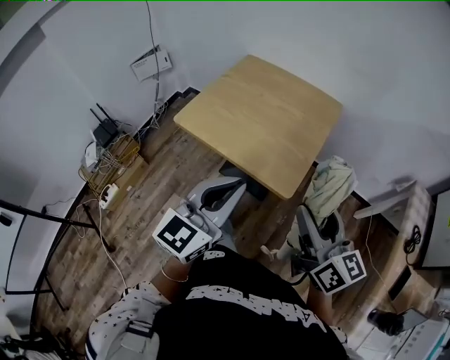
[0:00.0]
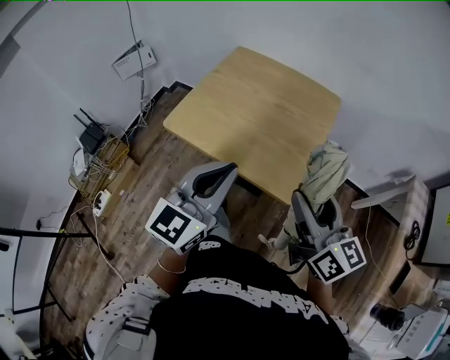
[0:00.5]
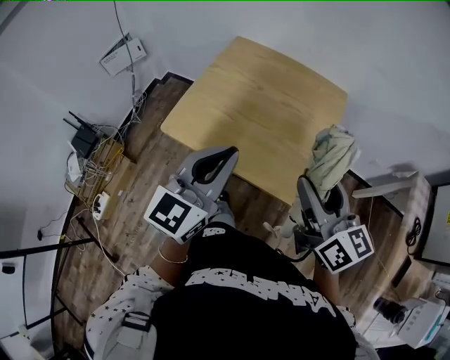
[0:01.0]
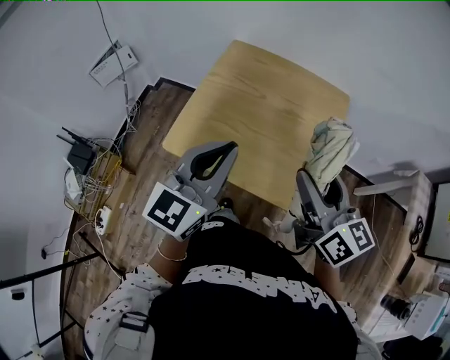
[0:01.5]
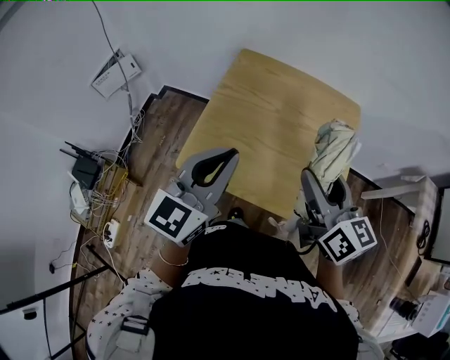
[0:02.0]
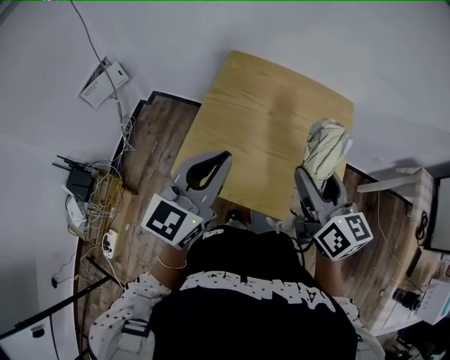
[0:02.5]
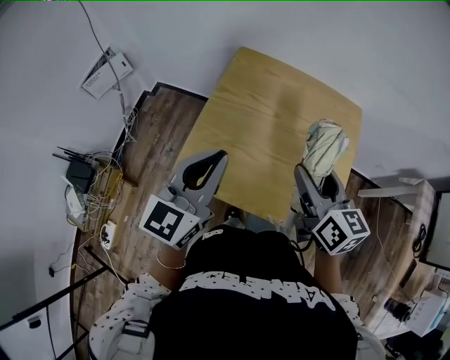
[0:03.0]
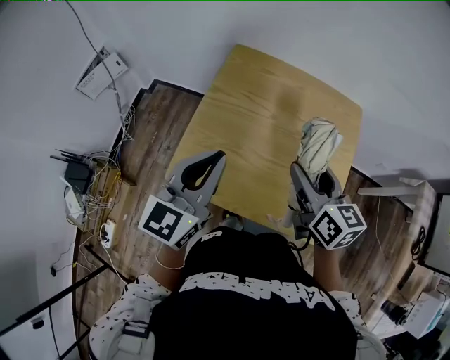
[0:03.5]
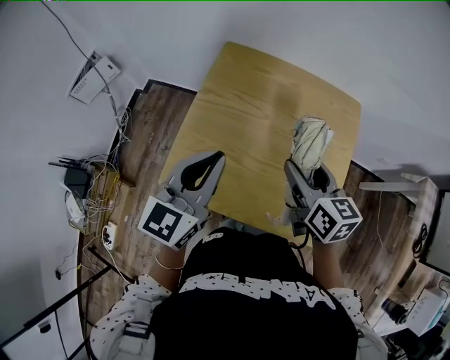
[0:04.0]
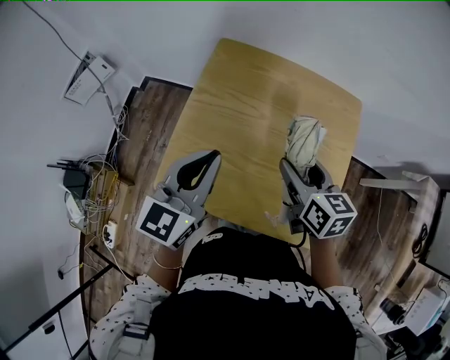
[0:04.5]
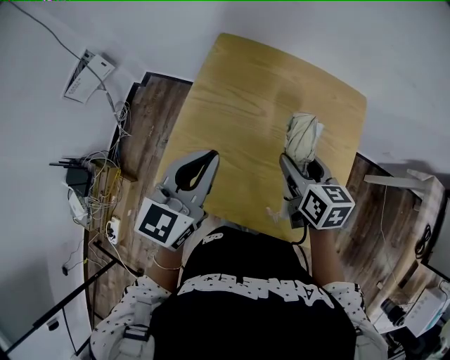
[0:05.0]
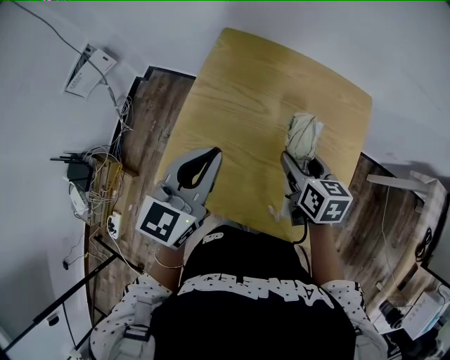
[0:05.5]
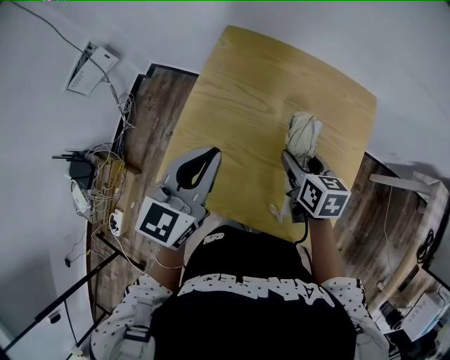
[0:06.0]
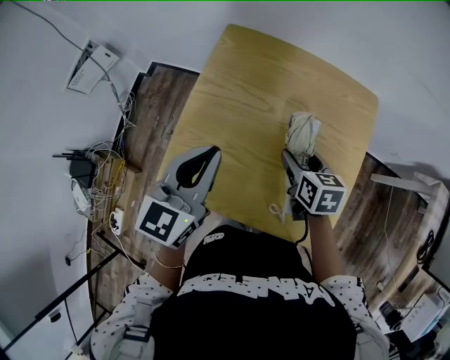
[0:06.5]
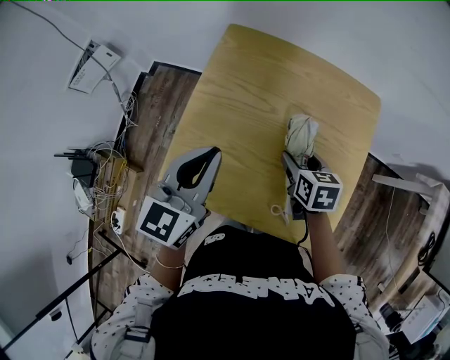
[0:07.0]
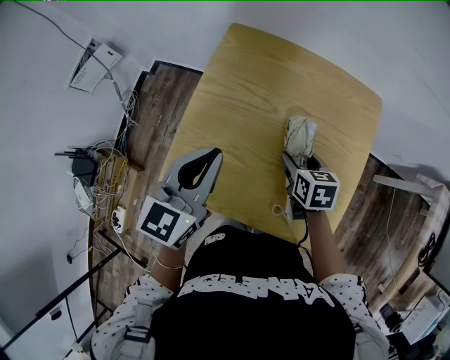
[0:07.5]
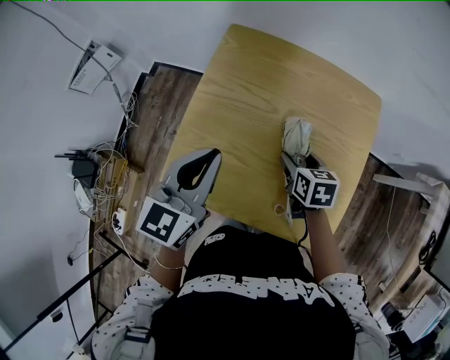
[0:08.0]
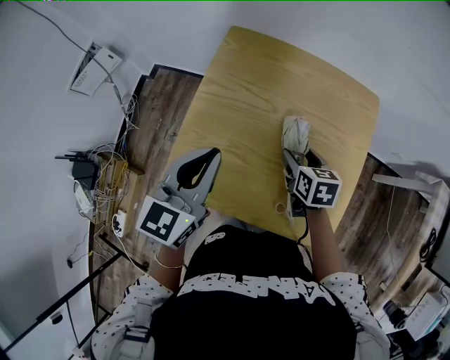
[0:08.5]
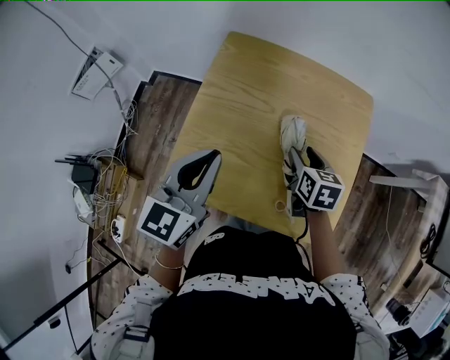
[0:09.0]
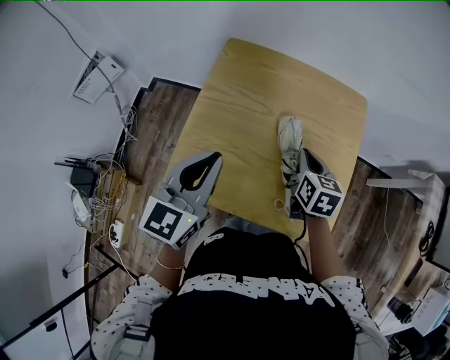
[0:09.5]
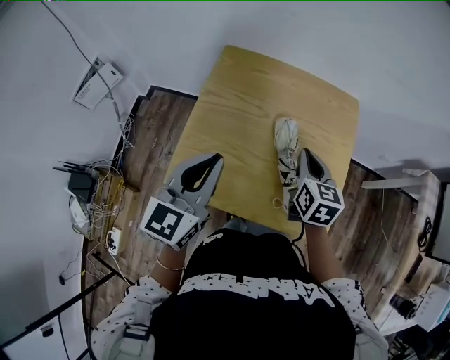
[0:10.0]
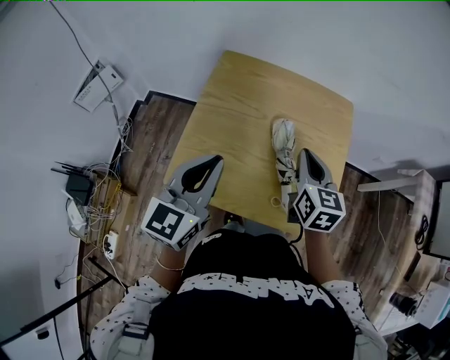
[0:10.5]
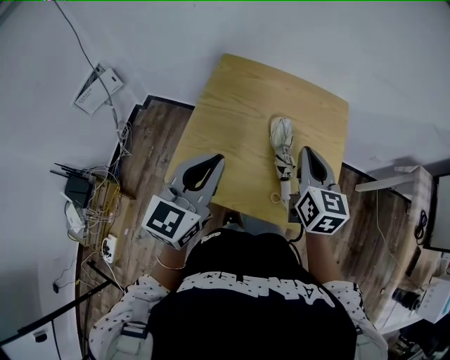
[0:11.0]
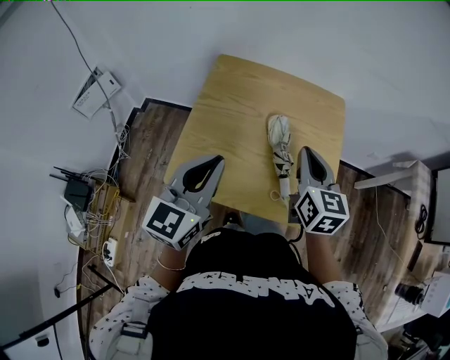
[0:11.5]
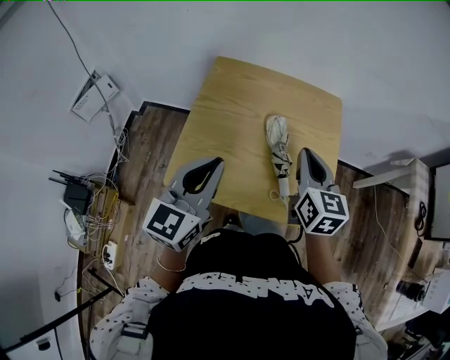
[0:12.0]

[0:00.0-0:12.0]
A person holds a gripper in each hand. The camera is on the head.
0:00.0 to 0:02.0: Both grippers travel together forward and to the left, approximately 30 cm.
0:02.0 to 0:04.0: The left gripper shifts about 10 cm forward. Meanwhile the right gripper shifts approximately 15 cm forward and downward.
0:04.0 to 0:06.0: The right gripper travels downward by roughly 10 cm.
0:06.0 to 0:08.0: The right gripper goes approximately 5 cm downward.
0:08.0 to 0:10.0: The left gripper ends up about 5 cm from where it was; the right gripper goes roughly 10 cm upward, swivels approximately 30 degrees, and closes.
0:10.0 to 0:12.0: The right gripper moves upward and backward, some 10 cm.

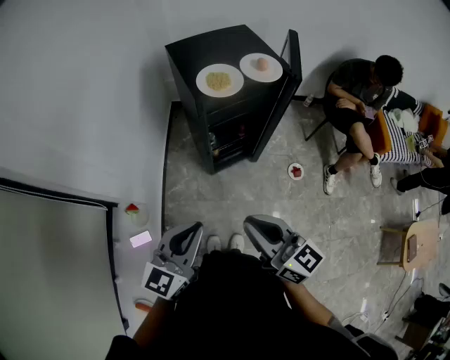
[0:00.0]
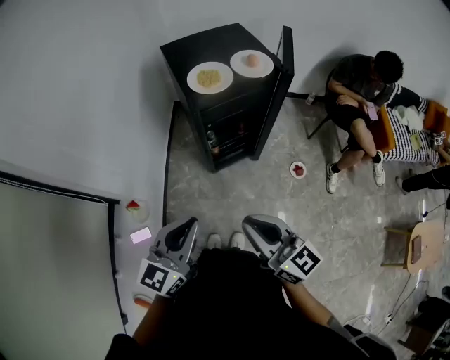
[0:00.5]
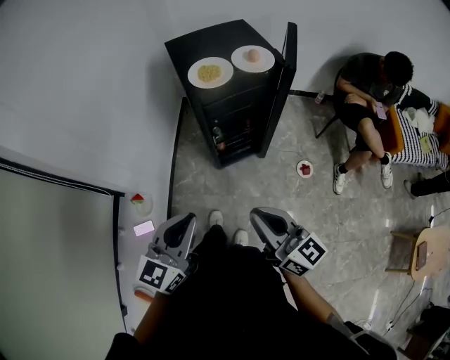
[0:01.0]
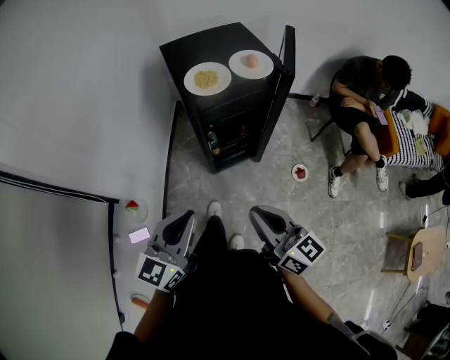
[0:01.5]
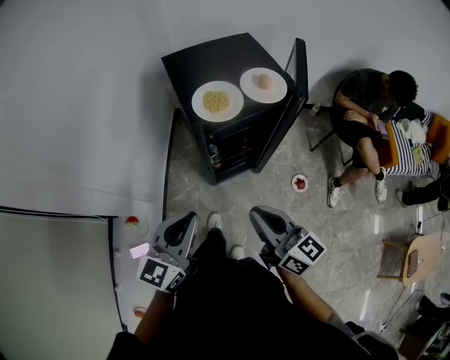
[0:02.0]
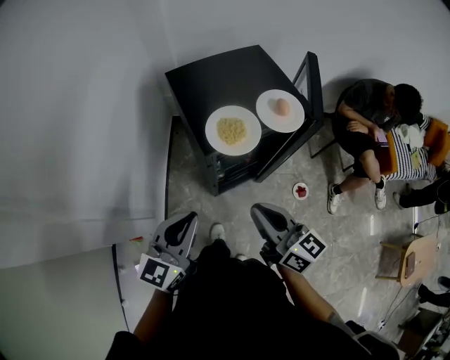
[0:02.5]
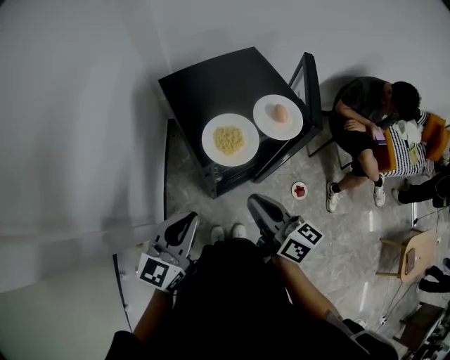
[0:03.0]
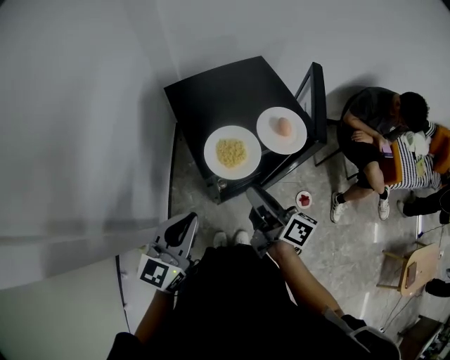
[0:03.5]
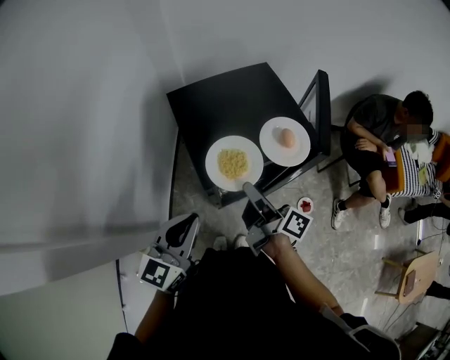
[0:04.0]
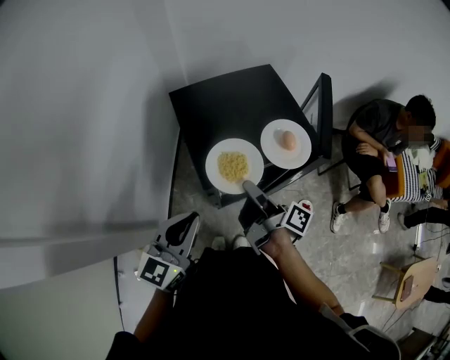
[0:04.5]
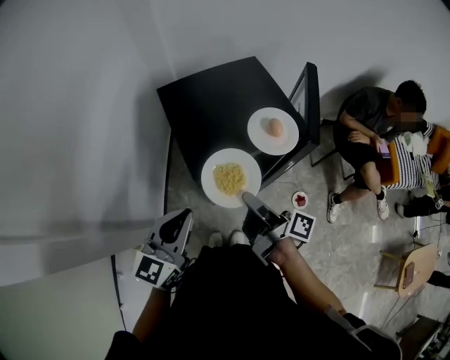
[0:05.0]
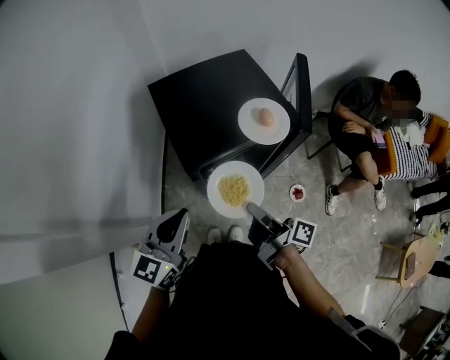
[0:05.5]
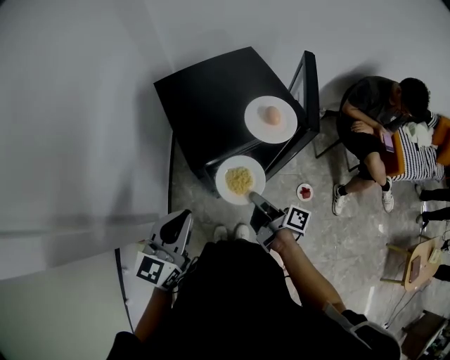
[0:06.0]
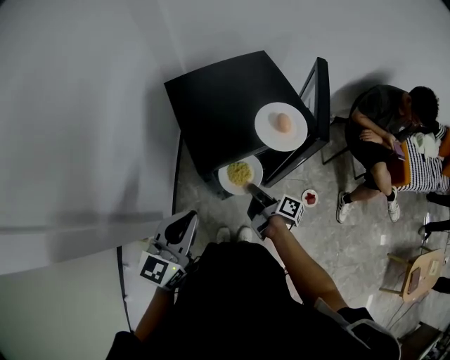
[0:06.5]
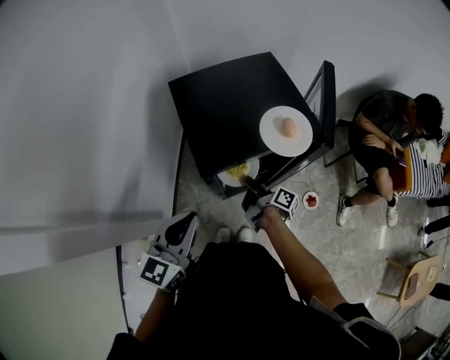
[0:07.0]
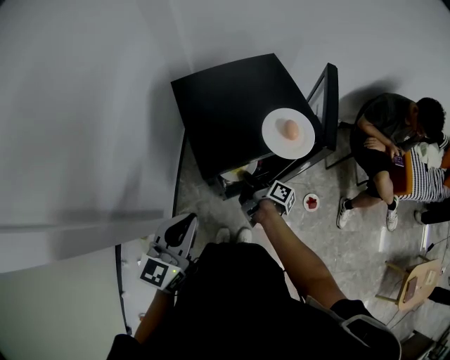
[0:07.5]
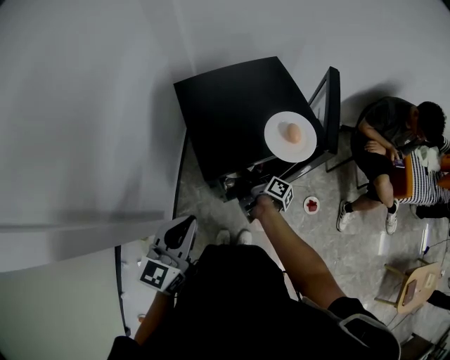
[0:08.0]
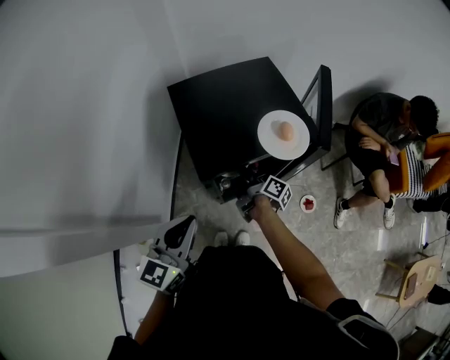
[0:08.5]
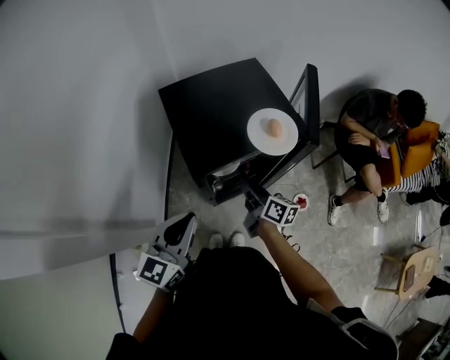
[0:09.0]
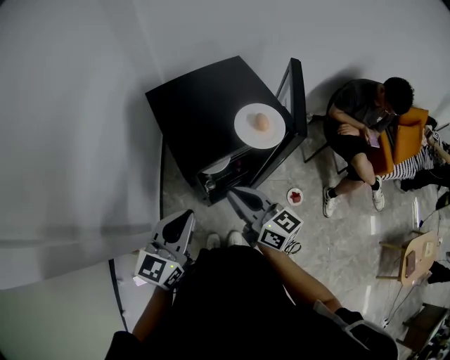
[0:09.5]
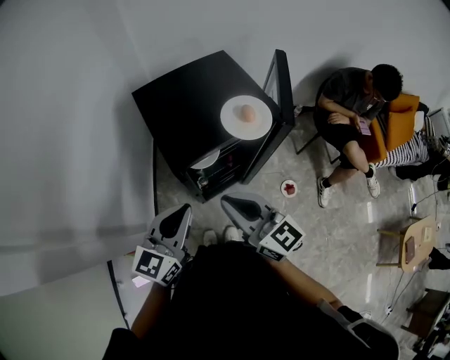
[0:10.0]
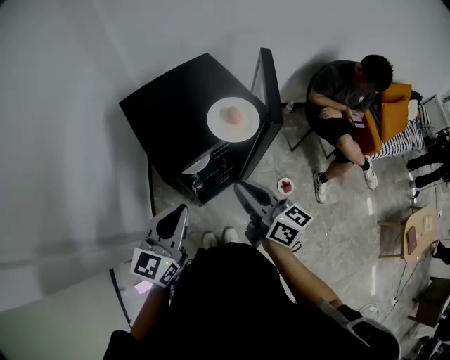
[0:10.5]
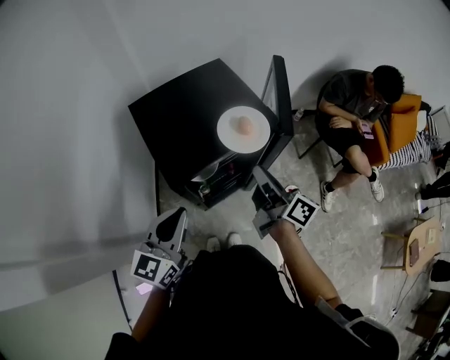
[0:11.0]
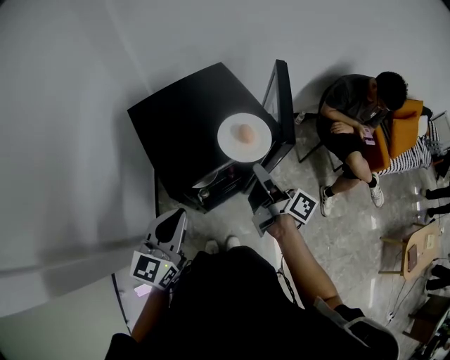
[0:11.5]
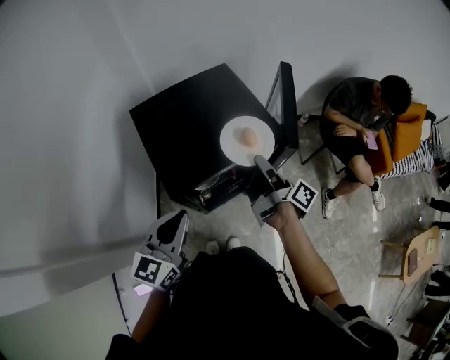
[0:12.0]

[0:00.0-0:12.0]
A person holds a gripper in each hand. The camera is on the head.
0:00.0 to 0:02.0: The left gripper is displaced forward by roughly 10 cm; the right gripper travels forward and to the right by approximately 15 cm.
0:02.0 to 0:04.0: The grippers both shift forward by approximately 25 cm. The right gripper rolls clockwise, seen from behind, by approximately 50 degrees, and opens up.
0:04.0 to 0:06.0: The right gripper is displaced downward, backward and to the right by about 15 cm.
0:06.0 to 0:08.0: The right gripper heads forward, downward and to the left, covering about 15 cm.
0:08.0 to 0:10.0: The right gripper shifts some 30 cm upward and backward, rotates around the line of its fingers by some 80 degrees, counterclockwise from behind, and opens and closes again.
0:10.0 to 0:12.0: The left gripper is displaced forward by approximately 5 cm. Meanwhile the right gripper travels forward, to the right and downward by some 25 cm, and rotates around the line of its fingers by some 70 degrees, clockwise from behind.

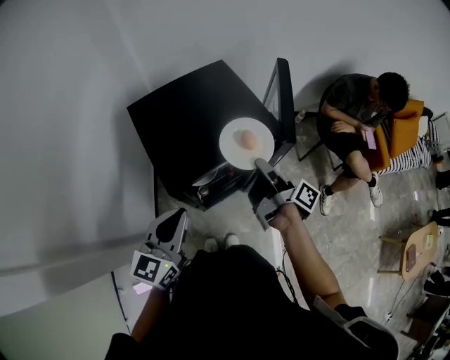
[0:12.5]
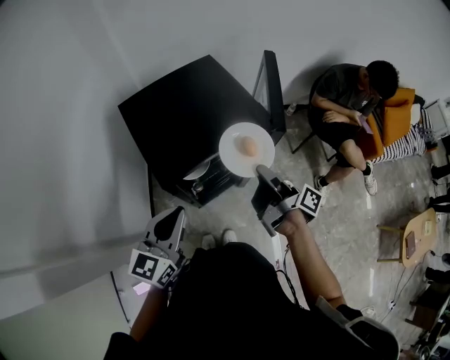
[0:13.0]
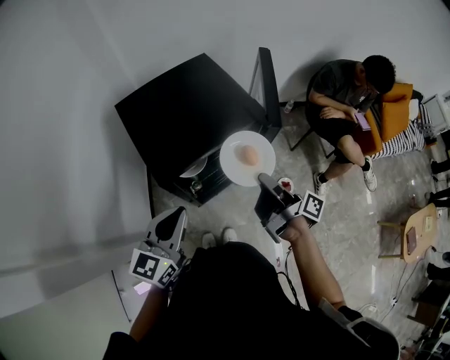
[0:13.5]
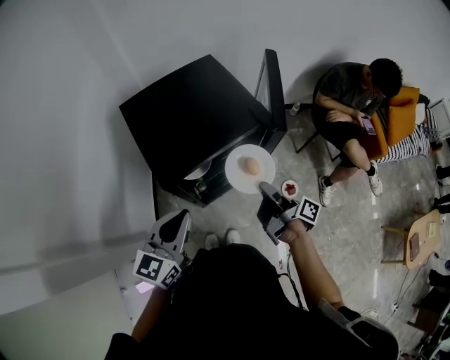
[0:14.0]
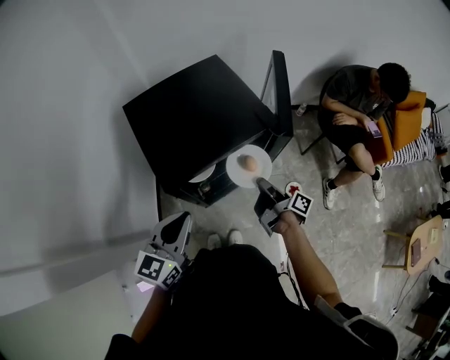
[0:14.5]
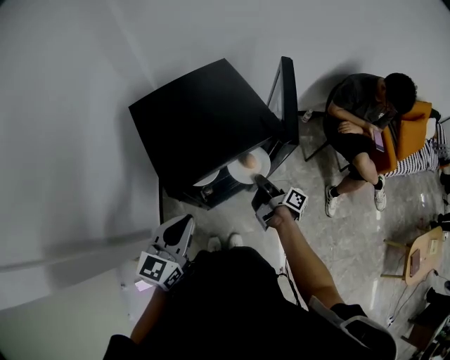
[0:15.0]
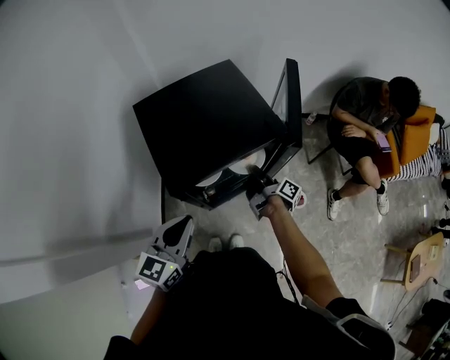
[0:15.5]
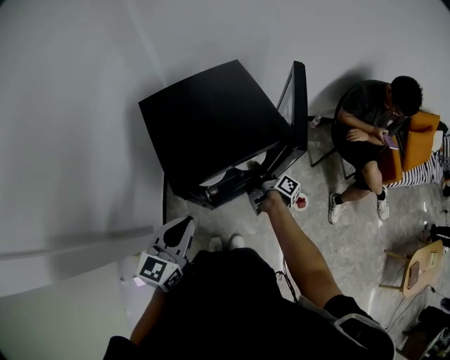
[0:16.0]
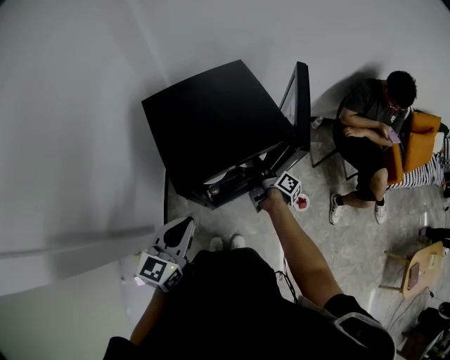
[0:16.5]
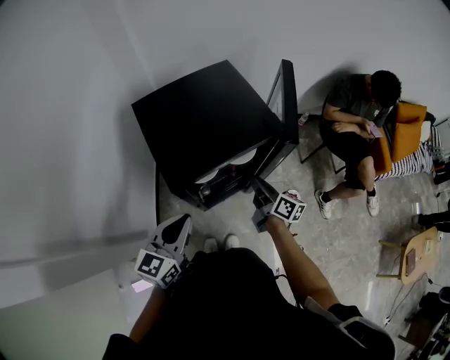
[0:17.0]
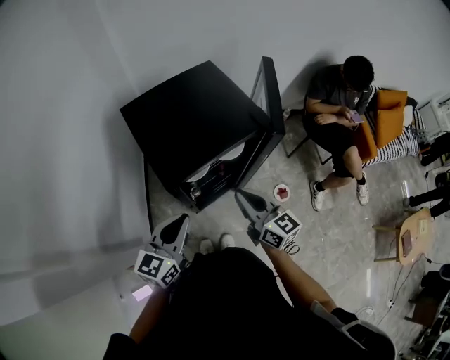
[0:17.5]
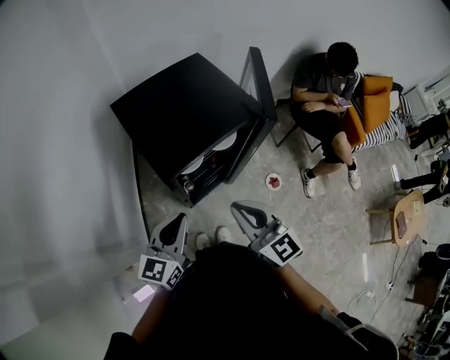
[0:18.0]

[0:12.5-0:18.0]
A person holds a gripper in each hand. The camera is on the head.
0:12.5 to 0:14.5: The right gripper heads downward, covering about 15 cm.
0:14.5 to 0:16.0: The right gripper goes approximately 10 cm forward and downward.
0:16.0 to 0:18.0: The right gripper travels upward and backward by about 35 cm, twists about 90 degrees counterclockwise, seen from behind, and opens and closes again.
